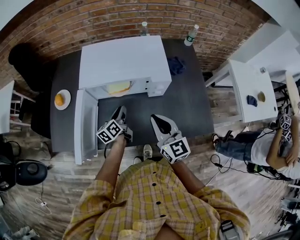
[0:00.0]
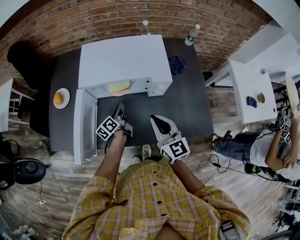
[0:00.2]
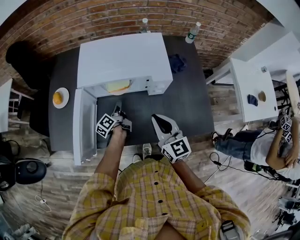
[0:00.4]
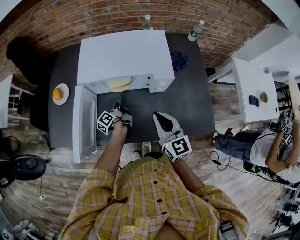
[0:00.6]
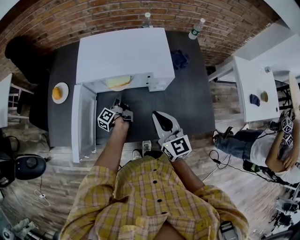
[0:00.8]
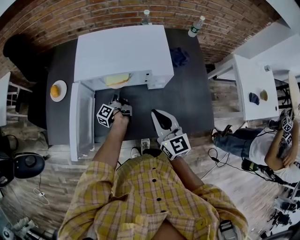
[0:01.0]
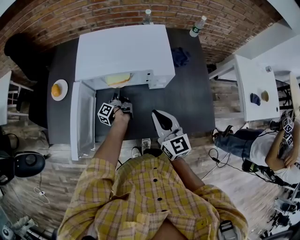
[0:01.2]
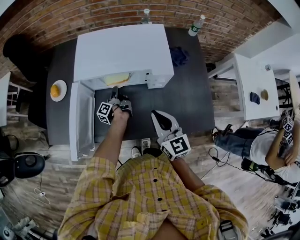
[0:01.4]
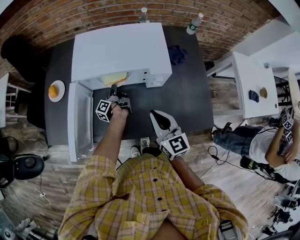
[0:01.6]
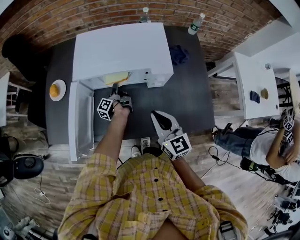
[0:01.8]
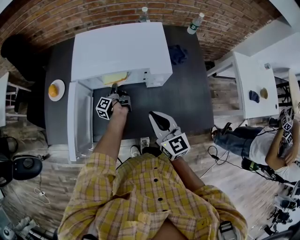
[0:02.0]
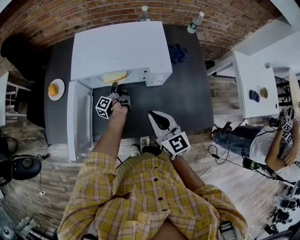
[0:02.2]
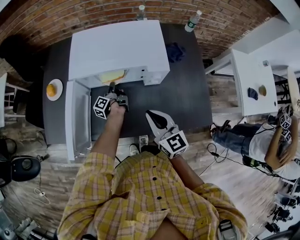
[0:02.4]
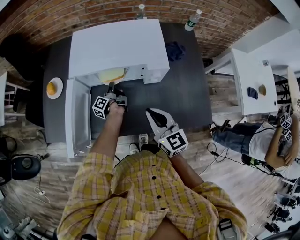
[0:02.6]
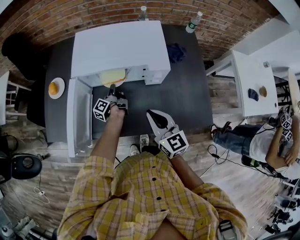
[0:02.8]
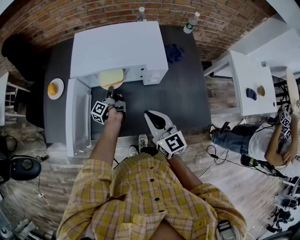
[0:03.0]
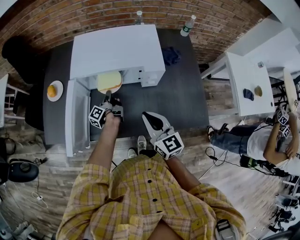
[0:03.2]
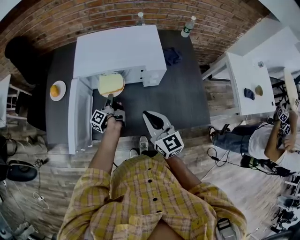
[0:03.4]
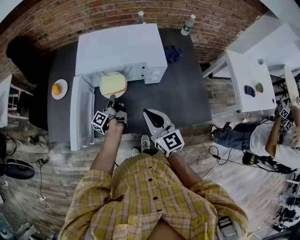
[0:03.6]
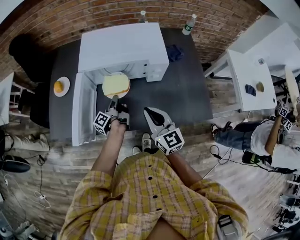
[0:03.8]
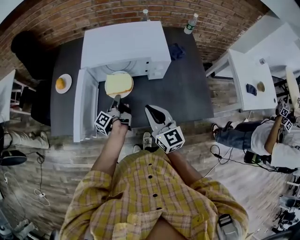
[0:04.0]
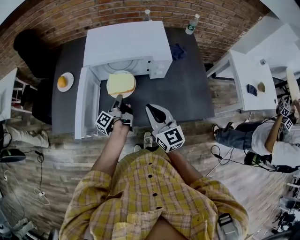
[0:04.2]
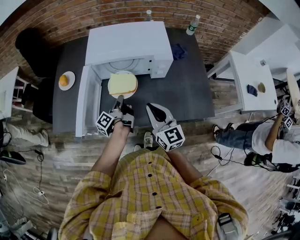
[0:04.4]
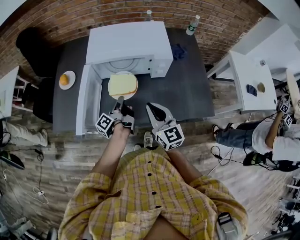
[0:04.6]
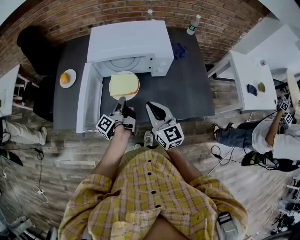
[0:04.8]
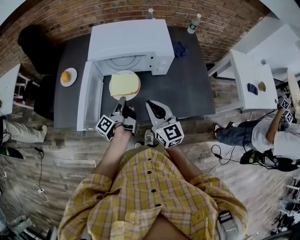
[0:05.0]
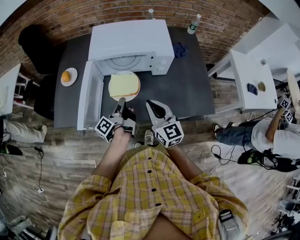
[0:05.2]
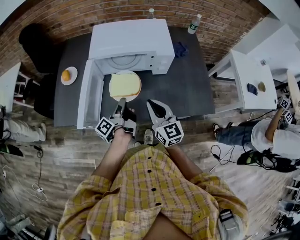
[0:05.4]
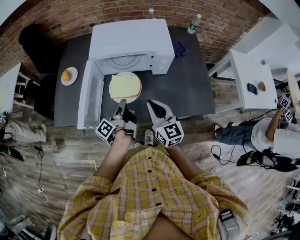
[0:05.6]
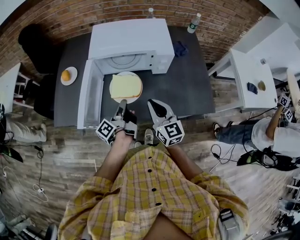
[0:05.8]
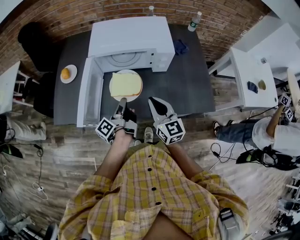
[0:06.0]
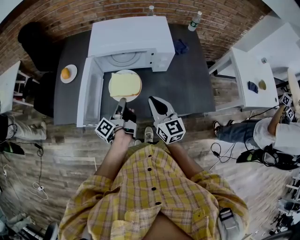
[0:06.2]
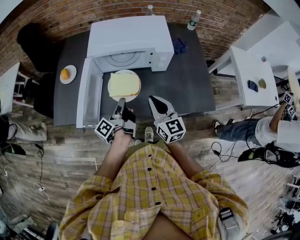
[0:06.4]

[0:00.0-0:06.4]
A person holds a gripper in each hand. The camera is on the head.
0:00.0 to 0:01.6: The left gripper travels forward and downward by about 15 cm, and rotates around the line of its fingers by roughly 50 degrees, counterclockwise from behind.
0:01.6 to 0:03.2: The left gripper moves some 5 cm, and closes its fingers.
0:03.2 to 0:04.8: The left gripper goes some 20 cm backward and upward, while the right gripper moves backward, about 5 cm.
0:04.8 to 0:06.4: The grippers move only a little.

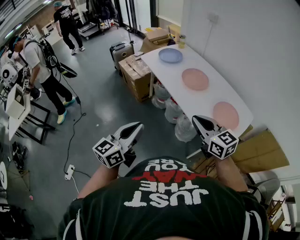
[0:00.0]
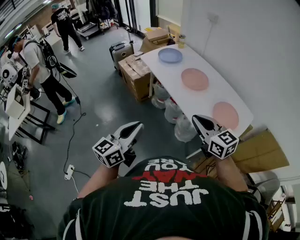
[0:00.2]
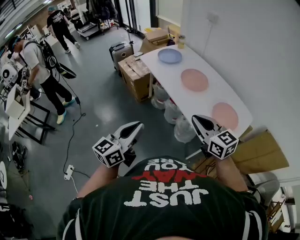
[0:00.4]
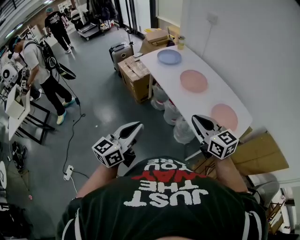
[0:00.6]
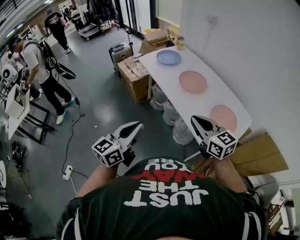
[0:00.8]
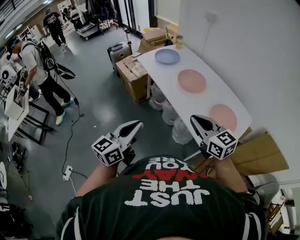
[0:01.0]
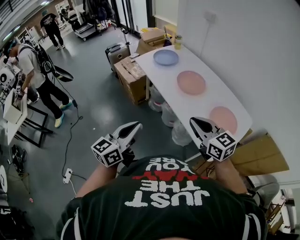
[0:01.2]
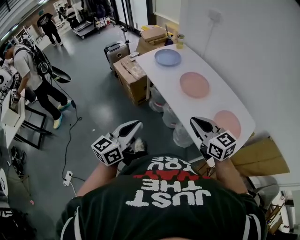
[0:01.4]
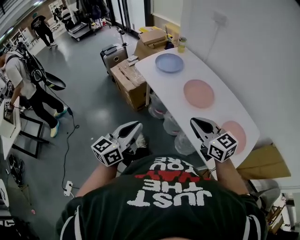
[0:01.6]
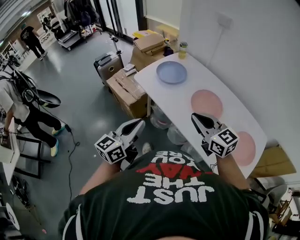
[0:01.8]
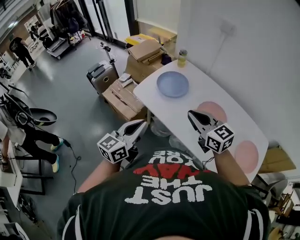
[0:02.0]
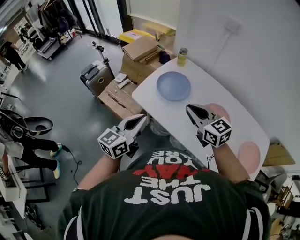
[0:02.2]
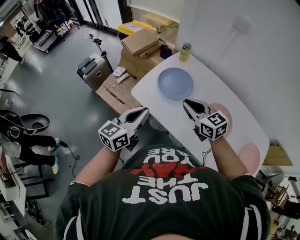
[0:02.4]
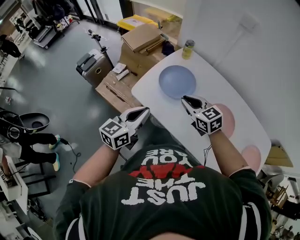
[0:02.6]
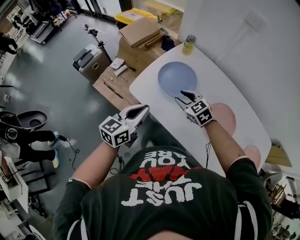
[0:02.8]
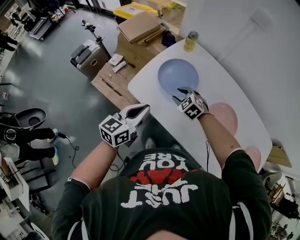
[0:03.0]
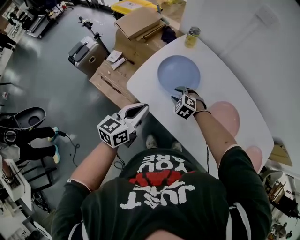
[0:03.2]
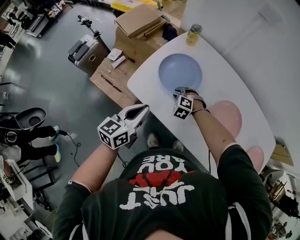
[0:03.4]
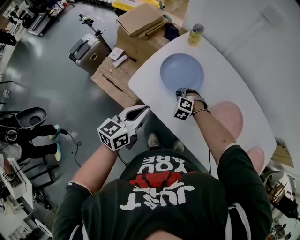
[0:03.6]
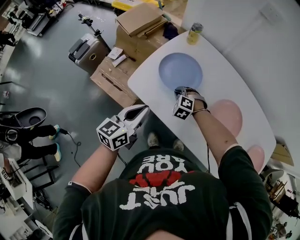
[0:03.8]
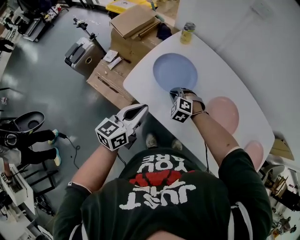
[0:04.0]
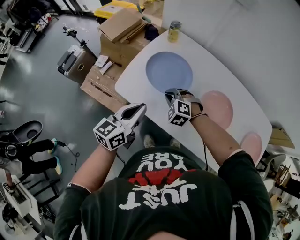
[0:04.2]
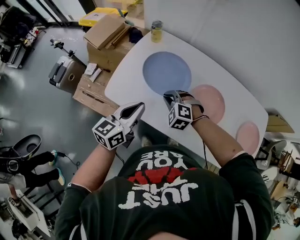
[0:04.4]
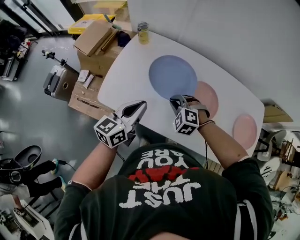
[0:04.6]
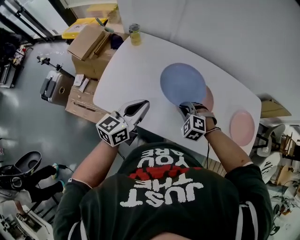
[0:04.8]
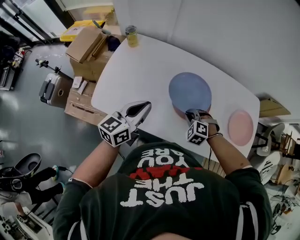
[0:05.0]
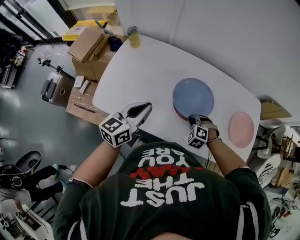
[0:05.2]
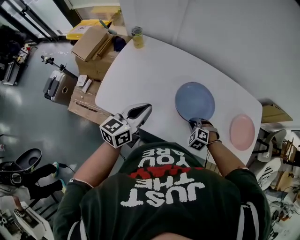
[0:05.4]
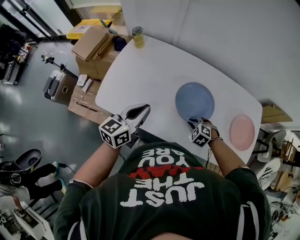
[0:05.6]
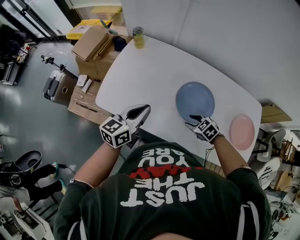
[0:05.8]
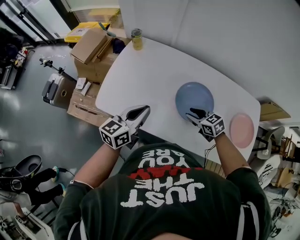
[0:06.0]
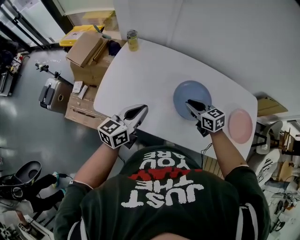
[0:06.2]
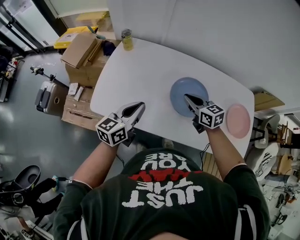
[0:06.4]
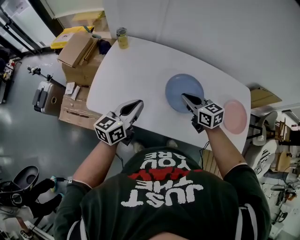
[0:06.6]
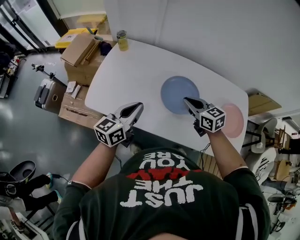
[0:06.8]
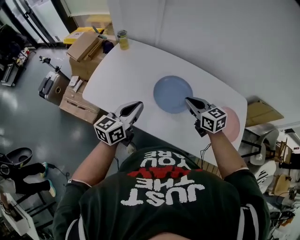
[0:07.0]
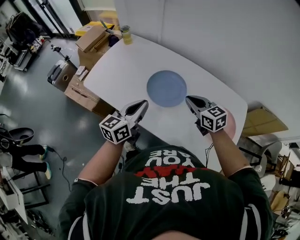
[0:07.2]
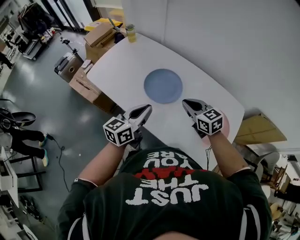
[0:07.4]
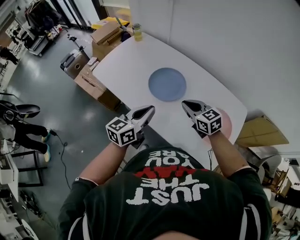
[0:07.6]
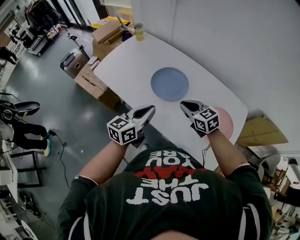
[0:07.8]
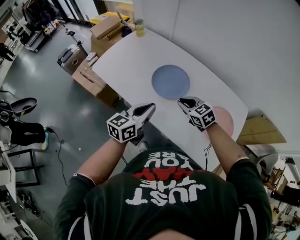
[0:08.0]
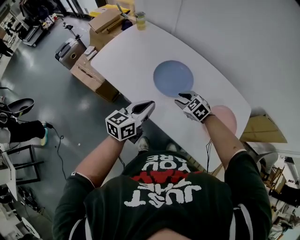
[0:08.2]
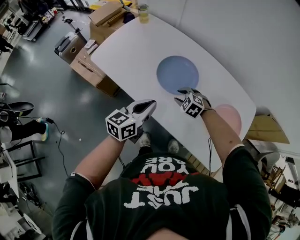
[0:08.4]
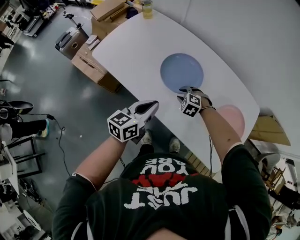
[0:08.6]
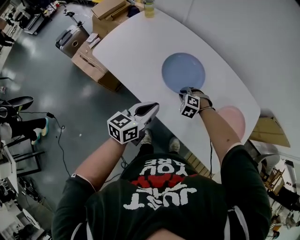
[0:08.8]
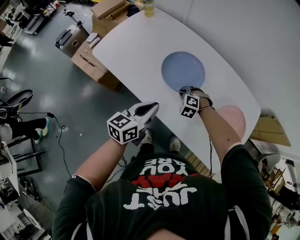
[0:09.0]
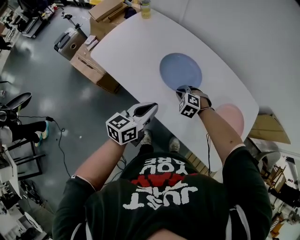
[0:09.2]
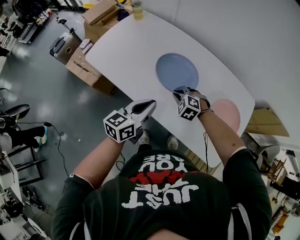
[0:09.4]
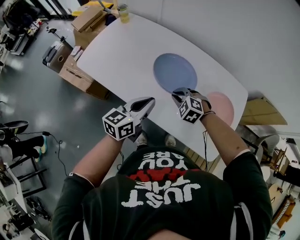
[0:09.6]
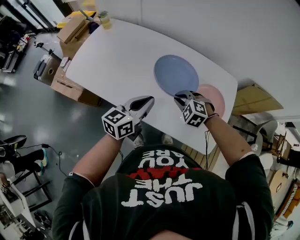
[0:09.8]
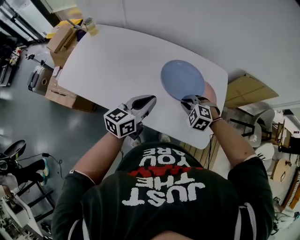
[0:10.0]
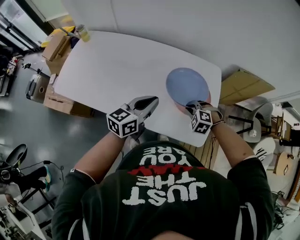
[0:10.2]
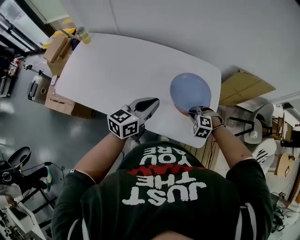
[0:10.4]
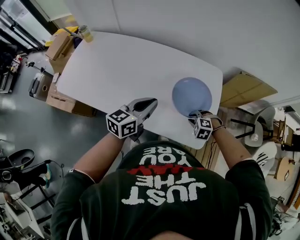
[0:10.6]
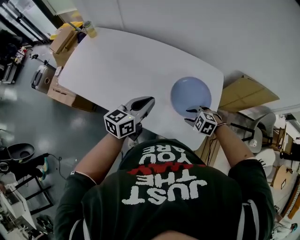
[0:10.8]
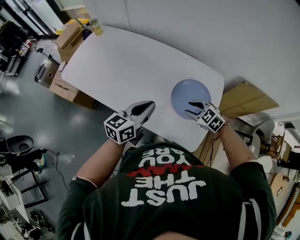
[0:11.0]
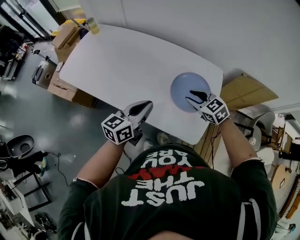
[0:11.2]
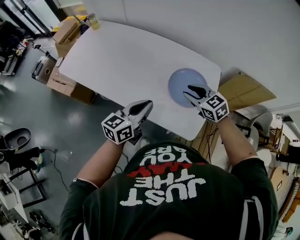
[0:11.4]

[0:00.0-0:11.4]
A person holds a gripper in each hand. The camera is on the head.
0:00.0 to 0:01.4: The grippers both shift forward by about 10 cm.
0:01.4 to 0:02.8: The pair of grippers is taken forward, approximately 60 cm. The right gripper swivels about 30 degrees, and opens, while the left gripper turns by approximately 20 degrees.
0:02.8 to 0:04.2: The right gripper travels downward by approximately 10 cm, changes its angle by some 30 degrees, and closes up. The left gripper moves some 5 cm.
0:04.2 to 0:05.6: The left gripper goes approximately 10 cm to the right; the right gripper goes some 30 cm to the right, and swivels some 30 degrees.
0:05.6 to 0:07.2: The left gripper goes roughly 20 cm to the right and backward. The right gripper moves upward and to the right, about 25 cm, tilts its fingers approximately 40 degrees upward, and opens and closes again.
0:07.2 to 0:08.6: The left gripper heads downward, covering approximately 5 cm; the right gripper moves downward, approximately 20 cm, points its fingers approximately 40 degrees further downward, and opens.
0:08.6 to 0:10.0: The right gripper travels to the right, backward and upward by roughly 25 cm, while the left gripper moves to the right, roughly 15 cm.
0:10.0 to 0:11.4: The right gripper goes about 10 cm upward, rotates about 40 degrees, and opens its fingers. The left gripper changes place by about 10 cm.

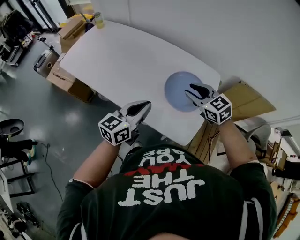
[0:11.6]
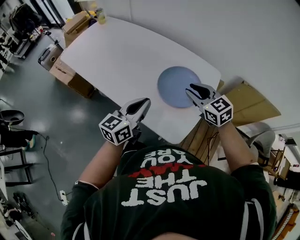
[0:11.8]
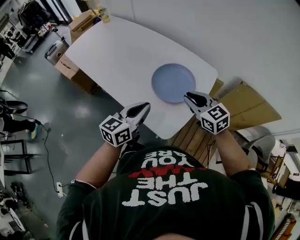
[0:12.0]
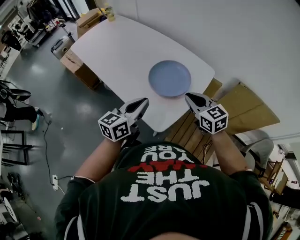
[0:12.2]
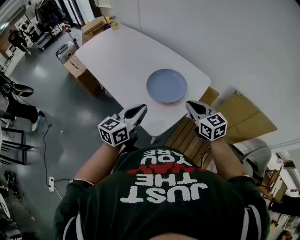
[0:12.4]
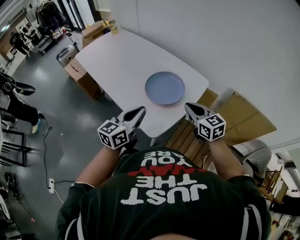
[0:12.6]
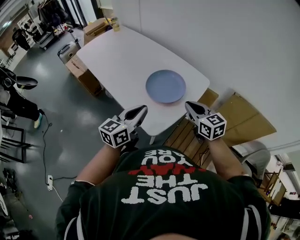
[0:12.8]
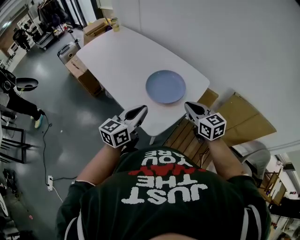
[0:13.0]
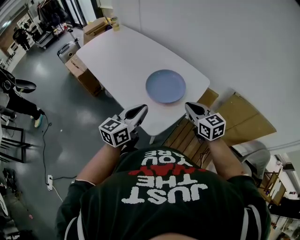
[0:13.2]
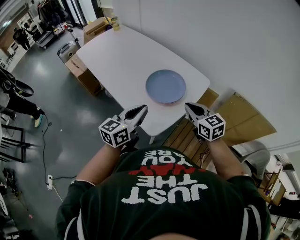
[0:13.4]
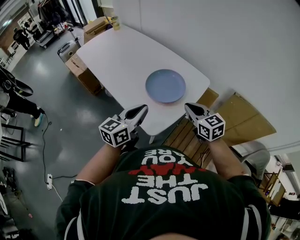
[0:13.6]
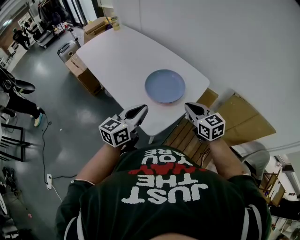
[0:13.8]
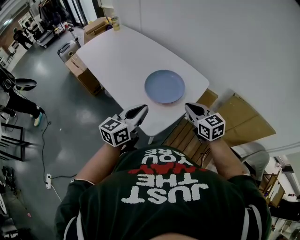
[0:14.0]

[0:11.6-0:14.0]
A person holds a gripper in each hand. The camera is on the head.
0:11.6 to 0:12.8: The two grippers go about 20 cm to the right and backward. The right gripper closes its fingers.
0:12.8 to 0:14.0: The grippers make only small movements.

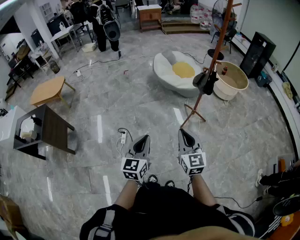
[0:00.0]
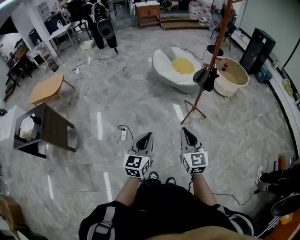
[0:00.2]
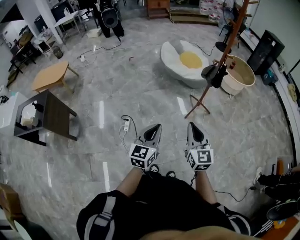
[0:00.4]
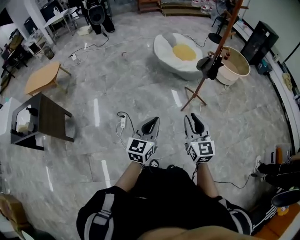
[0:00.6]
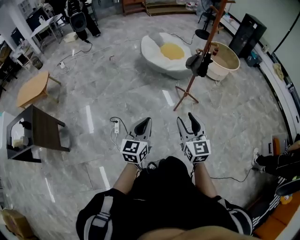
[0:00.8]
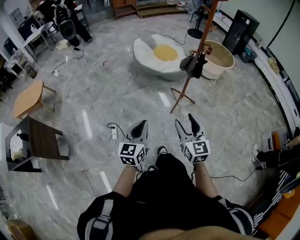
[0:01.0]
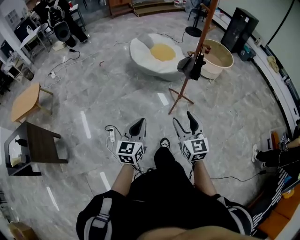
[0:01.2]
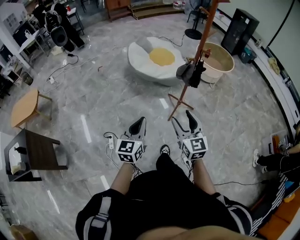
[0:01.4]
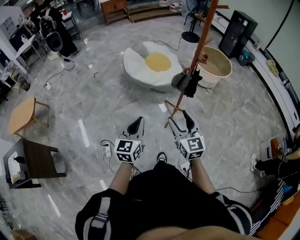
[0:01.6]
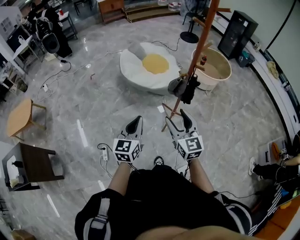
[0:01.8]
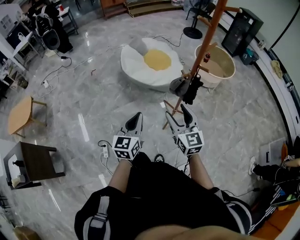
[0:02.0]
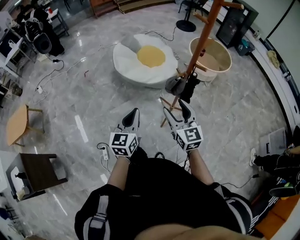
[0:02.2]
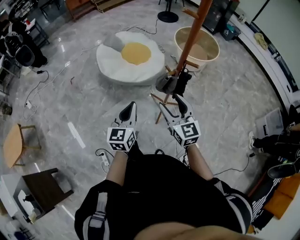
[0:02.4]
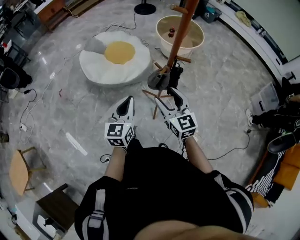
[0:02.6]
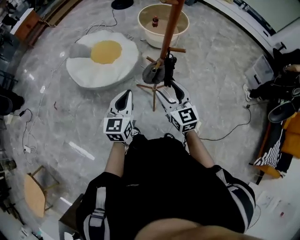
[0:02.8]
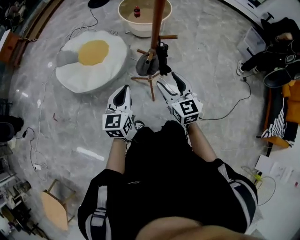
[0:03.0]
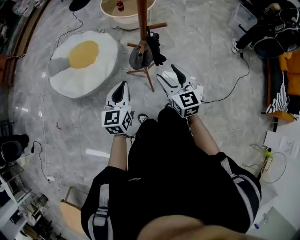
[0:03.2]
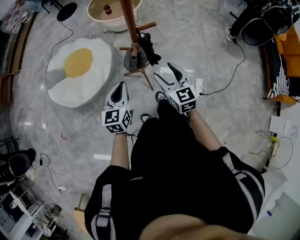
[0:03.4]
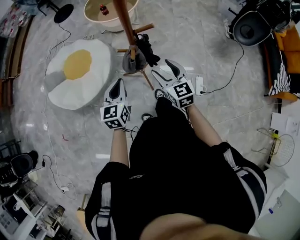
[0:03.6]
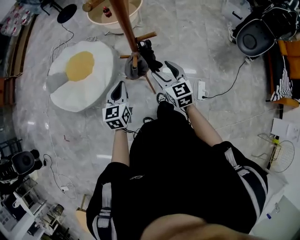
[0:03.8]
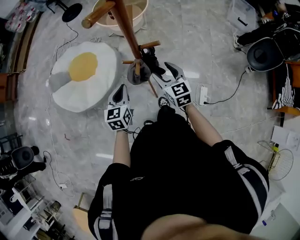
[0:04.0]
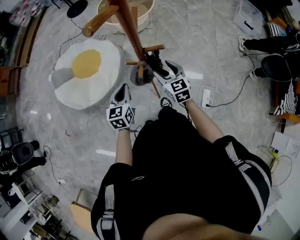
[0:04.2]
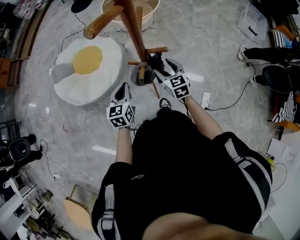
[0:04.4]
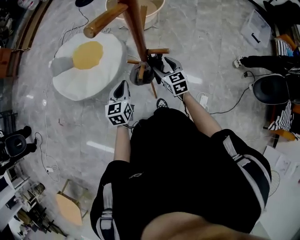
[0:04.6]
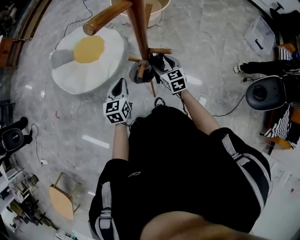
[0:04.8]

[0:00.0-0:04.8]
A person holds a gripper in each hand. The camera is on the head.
0:00.0 to 0:01.6: The grippers both shift forward by some 30 cm. The right gripper opens.
0:01.6 to 0:03.2: The left gripper changes place by some 35 cm, and changes its angle by about 50 degrees; the right gripper ends up roughly 25 cm from where it was, and rotates approximately 50 degrees.
0:03.2 to 0:04.8: The right gripper shifts some 25 cm forward and downward. Meanwhile the left gripper shifts about 15 cm forward and downward.
